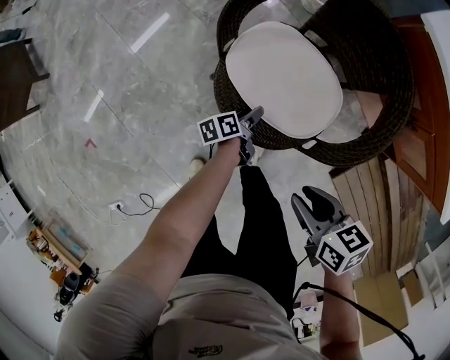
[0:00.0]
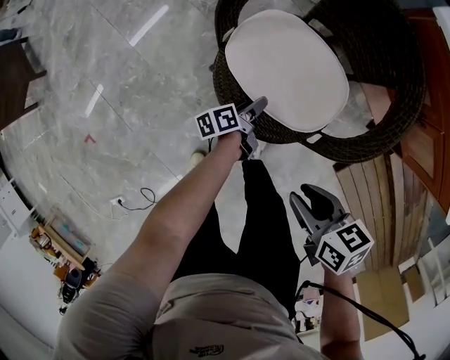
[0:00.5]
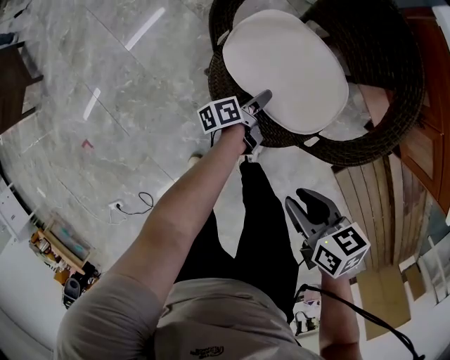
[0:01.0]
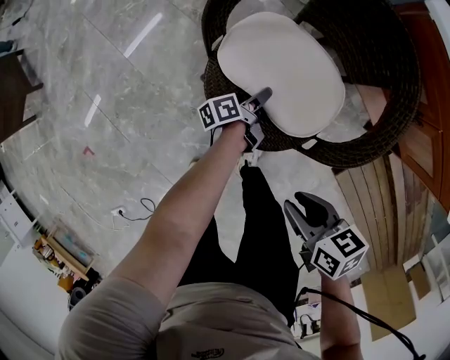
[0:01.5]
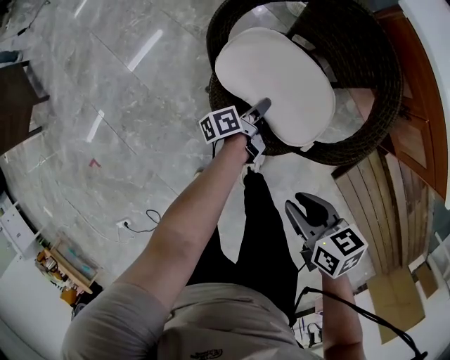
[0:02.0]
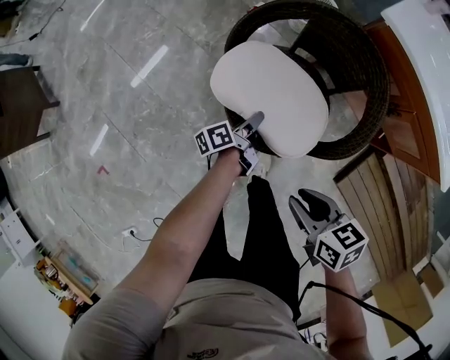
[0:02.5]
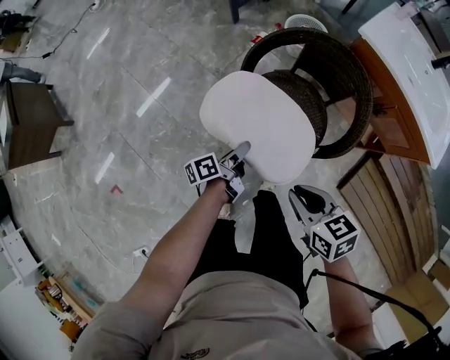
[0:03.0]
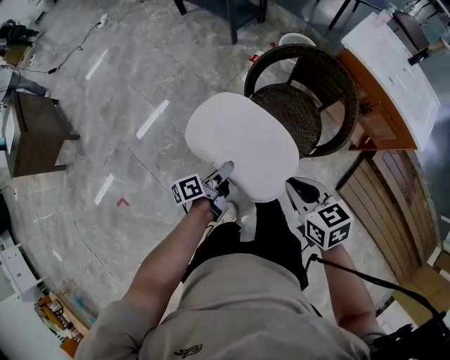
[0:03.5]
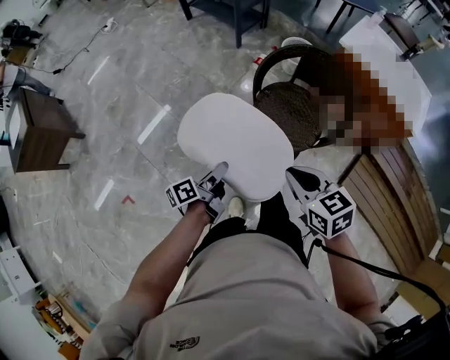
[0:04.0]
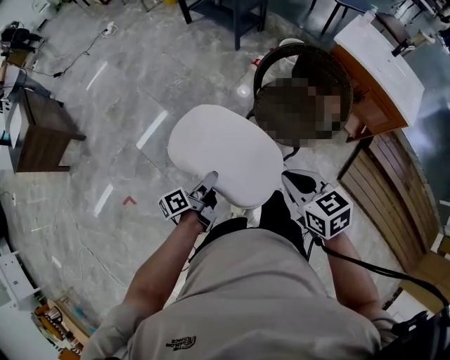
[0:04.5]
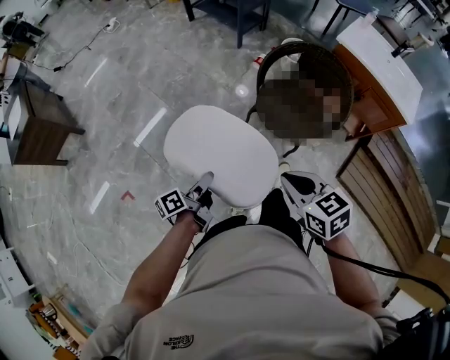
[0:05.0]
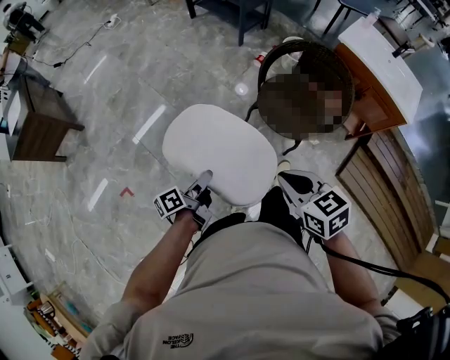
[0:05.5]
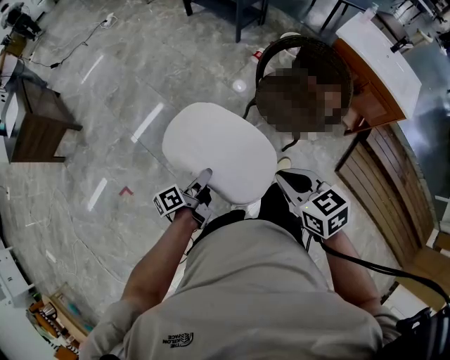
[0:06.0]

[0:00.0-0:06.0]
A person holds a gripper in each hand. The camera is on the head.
0:02.0 to 0:04.0: The right gripper shifts roughly 25 cm upward, turns by approximately 30 degrees, and closes up.
0:04.0 to 0:06.0: The right gripper changes place by some 15 cm.

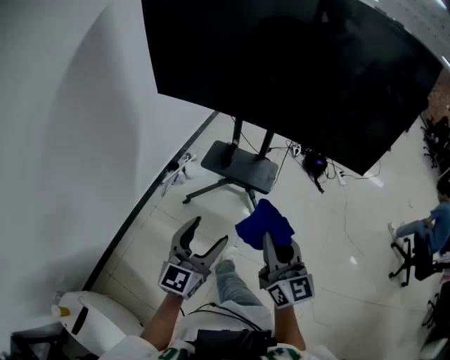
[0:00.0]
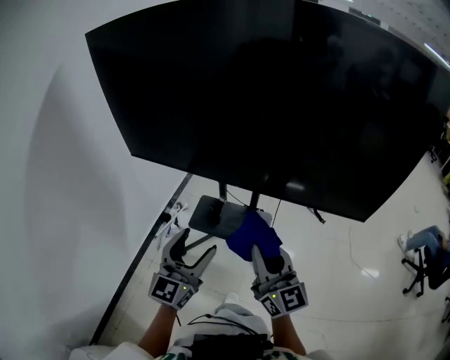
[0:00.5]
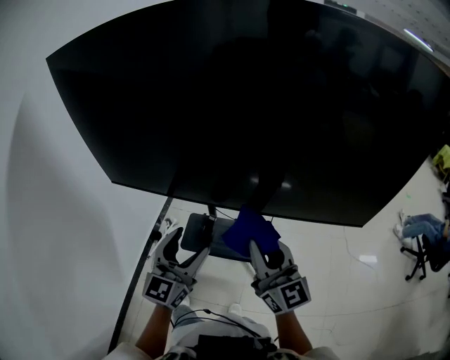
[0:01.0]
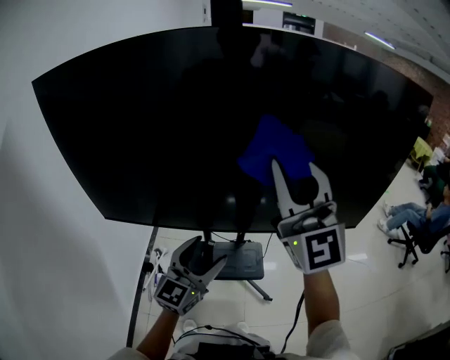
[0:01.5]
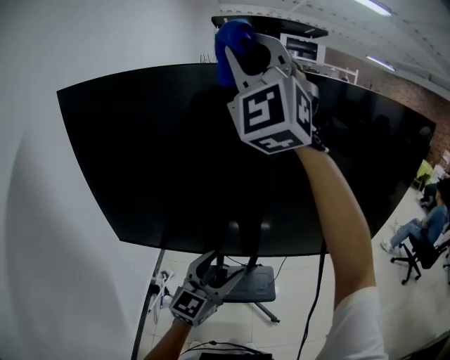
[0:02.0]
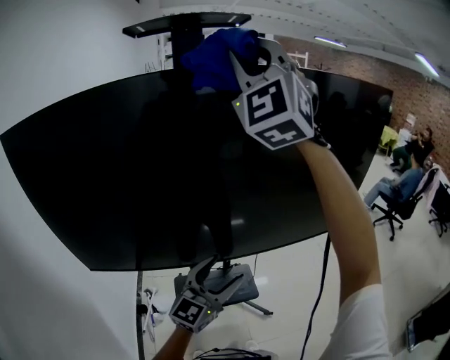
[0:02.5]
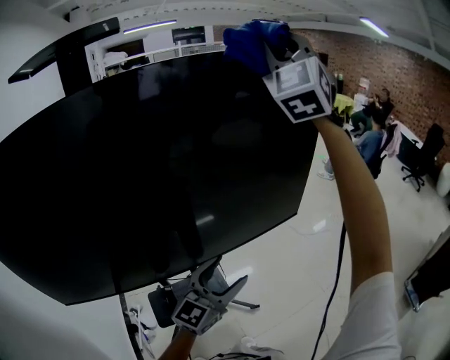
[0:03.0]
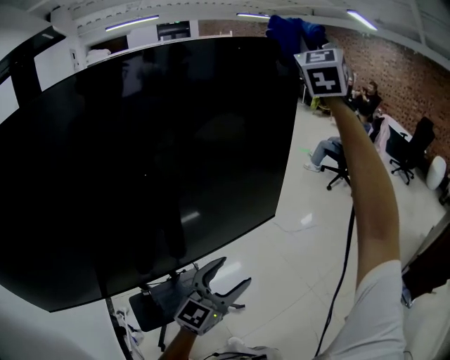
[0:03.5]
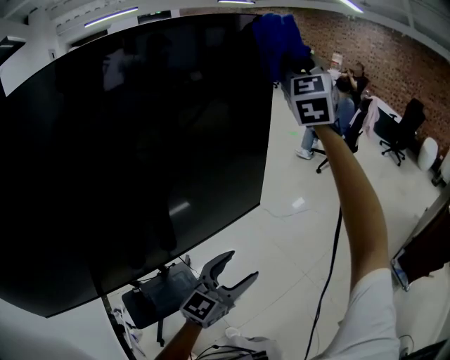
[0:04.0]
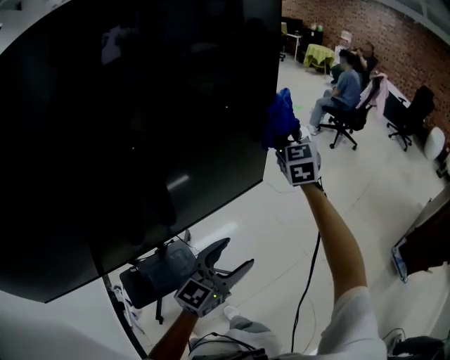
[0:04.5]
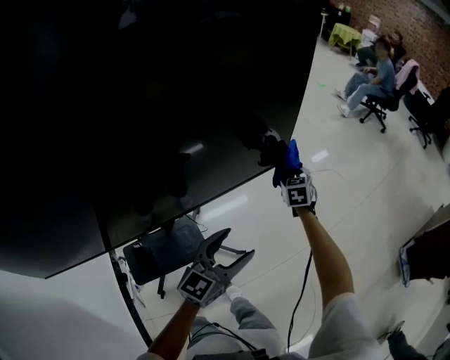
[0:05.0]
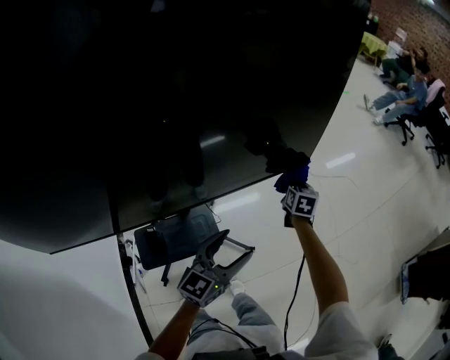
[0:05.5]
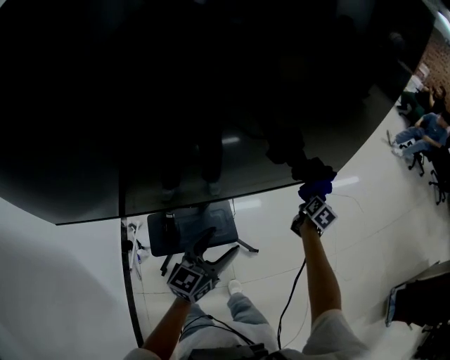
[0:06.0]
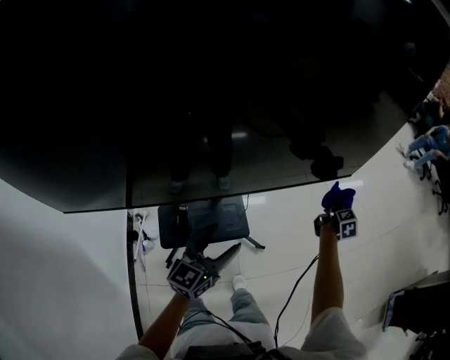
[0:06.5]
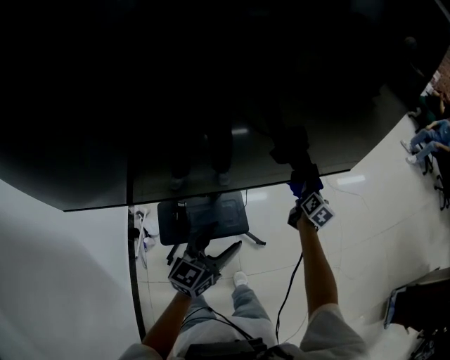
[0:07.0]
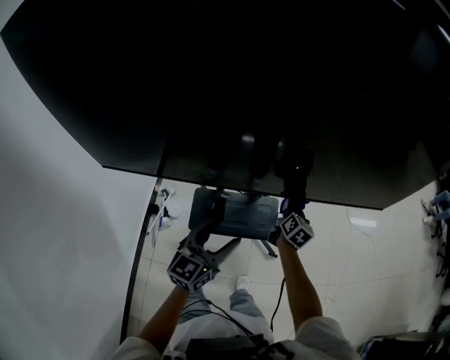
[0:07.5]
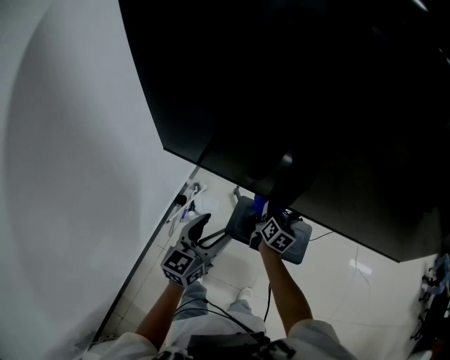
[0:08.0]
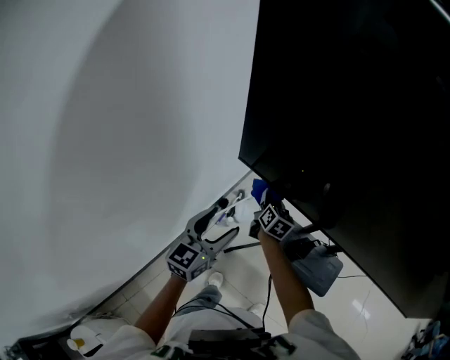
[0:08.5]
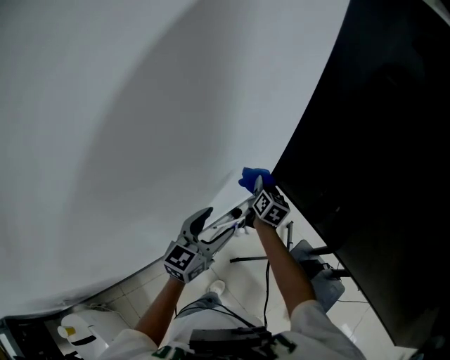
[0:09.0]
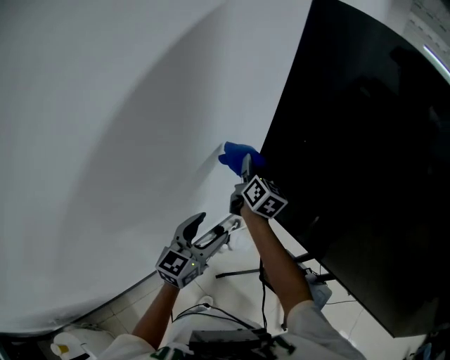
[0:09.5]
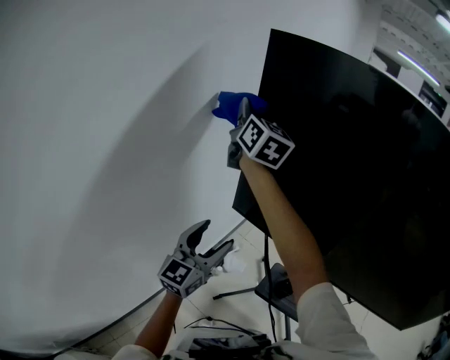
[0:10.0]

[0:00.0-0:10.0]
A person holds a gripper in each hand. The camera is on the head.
0:00.0 to 0:02.0: The pair of grippers is taken forward, about 50 cm. The left gripper turns by some 30 degrees, while the right gripper is displaced upward by some 60 cm, and rotates around the line of its fingers by roughly 80 degrees, counterclockwise from behind.
0:02.0 to 0:04.0: The two grippers travel together, roughly 60 cm. The right gripper turns by approximately 60 degrees; the left gripper rotates about 40 degrees.
0:04.0 to 0:06.0: The right gripper heads downward, covering approximately 70 cm, and tilts its fingers approximately 50 degrees downward, while the left gripper heads to the left, downward and backward, covering roughly 25 cm, and swivels roughly 30 degrees.
0:06.0 to 0:08.0: The pair of grippers is taken approximately 60 cm. The left gripper turns by roughly 40 degrees; the right gripper changes its angle by approximately 50 degrees.
0:08.0 to 0:10.0: The left gripper ends up approximately 30 cm from where it was, and rotates some 20 degrees. The right gripper goes approximately 50 cm upward, and points its fingers some 40 degrees further upward.

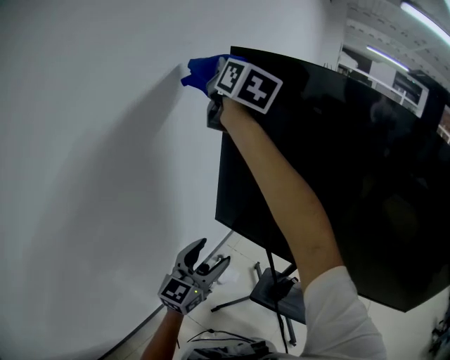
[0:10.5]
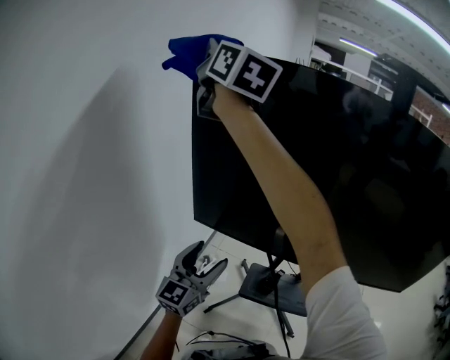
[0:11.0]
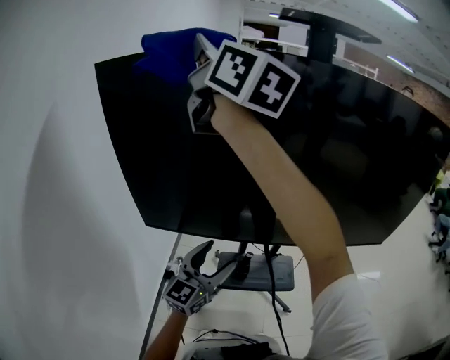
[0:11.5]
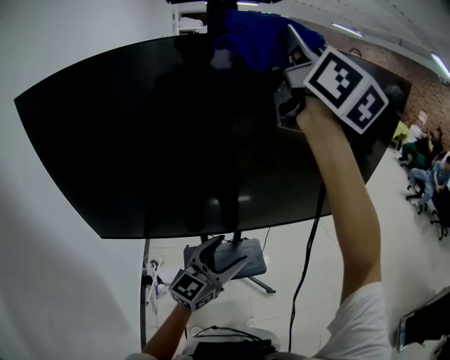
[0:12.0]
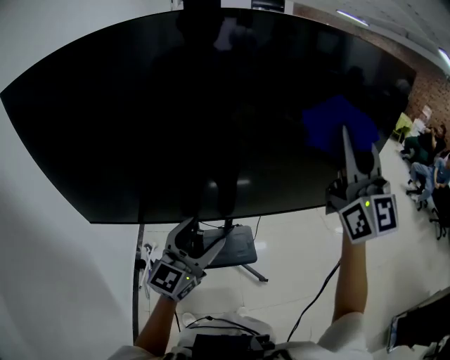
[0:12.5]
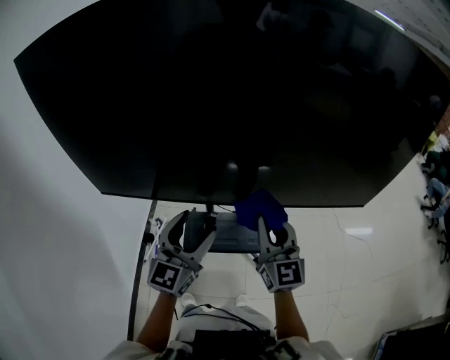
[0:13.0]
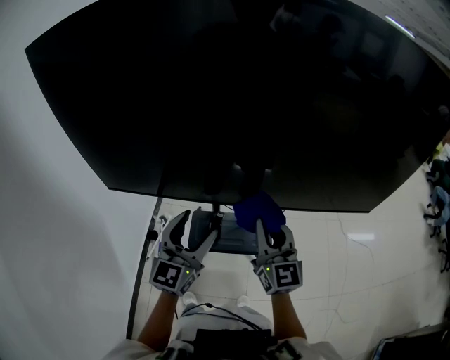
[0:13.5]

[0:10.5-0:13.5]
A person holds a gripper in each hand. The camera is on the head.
0:10.5 to 0:12.0: The two grippers travel together, approximately 50 cm. The left gripper rotates about 50 degrees. The right gripper turns by about 50 degrees.
0:12.0 to 0:13.5: The right gripper moves downward, approximately 50 cm, and rotates approximately 30 degrees, while the left gripper moves to the left, about 15 cm, and rotates about 30 degrees.

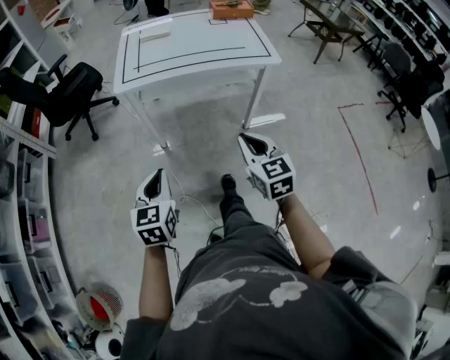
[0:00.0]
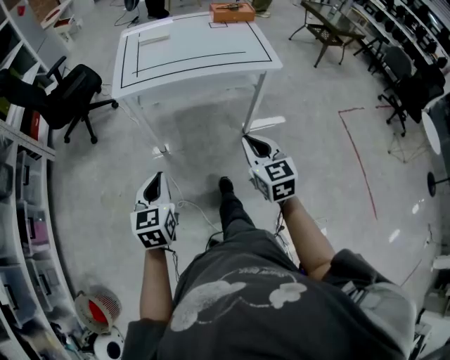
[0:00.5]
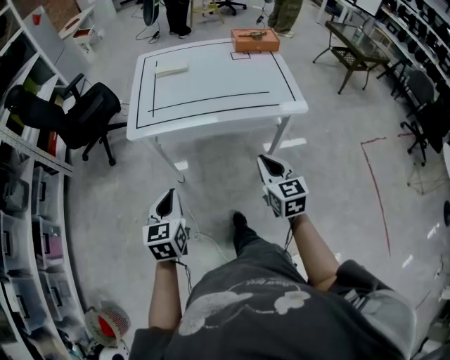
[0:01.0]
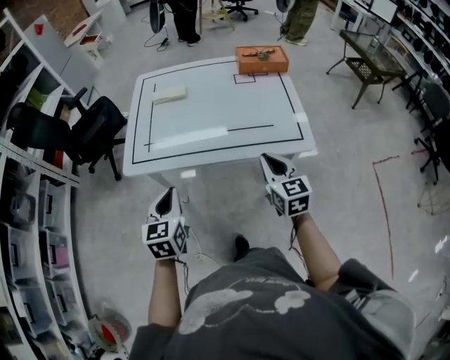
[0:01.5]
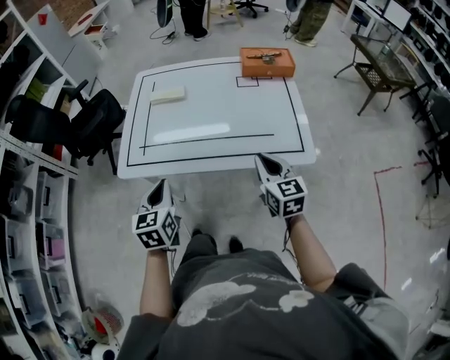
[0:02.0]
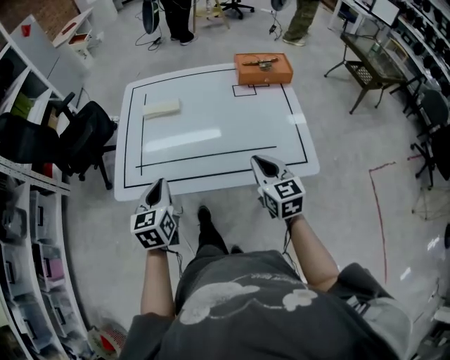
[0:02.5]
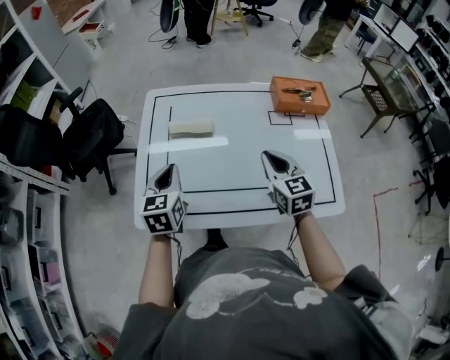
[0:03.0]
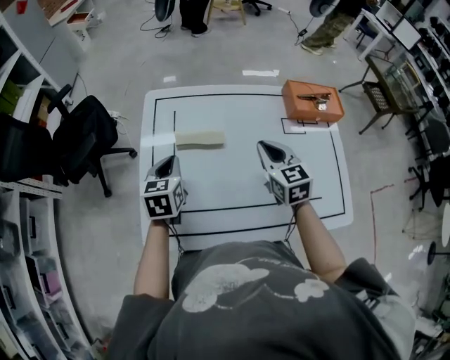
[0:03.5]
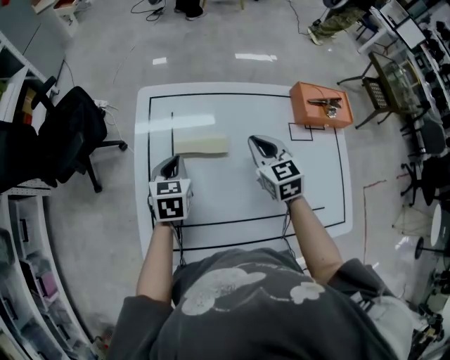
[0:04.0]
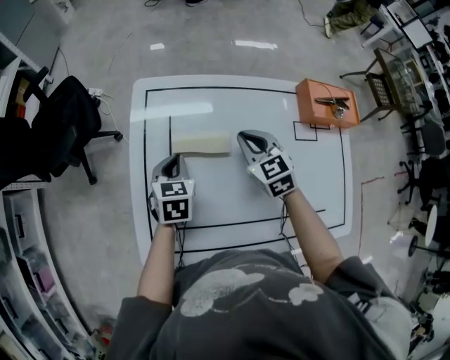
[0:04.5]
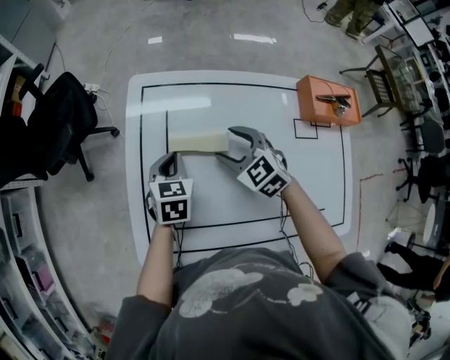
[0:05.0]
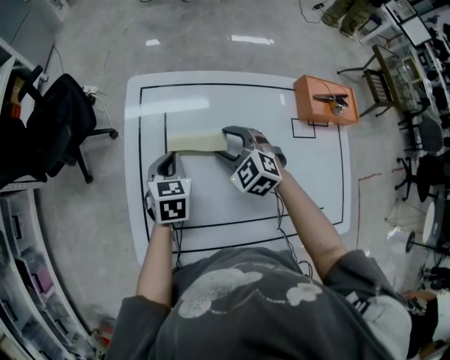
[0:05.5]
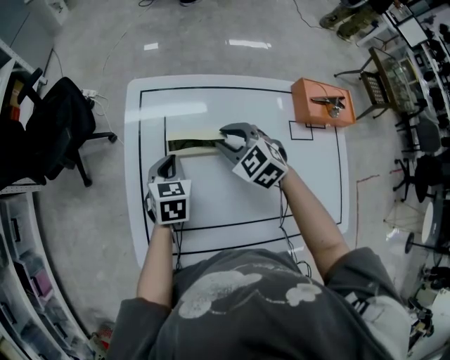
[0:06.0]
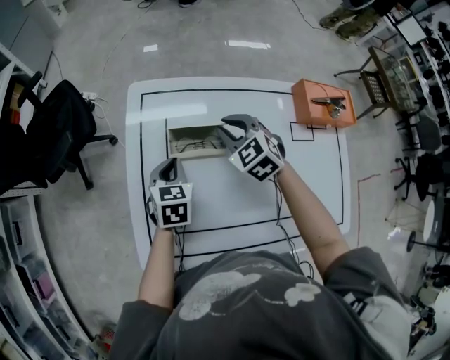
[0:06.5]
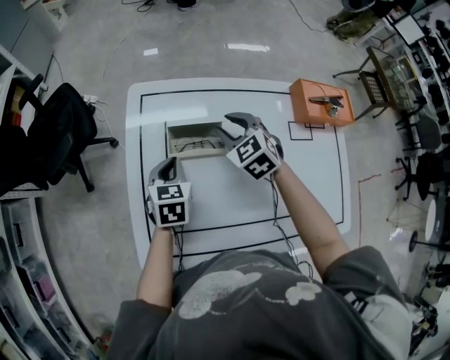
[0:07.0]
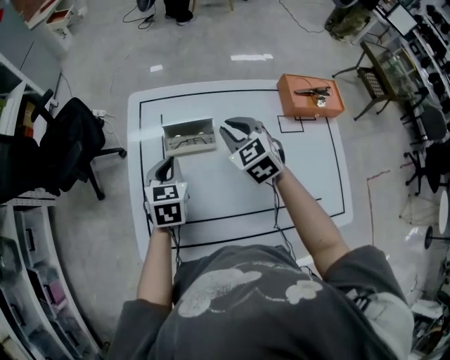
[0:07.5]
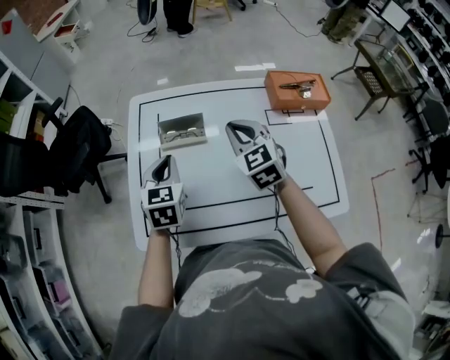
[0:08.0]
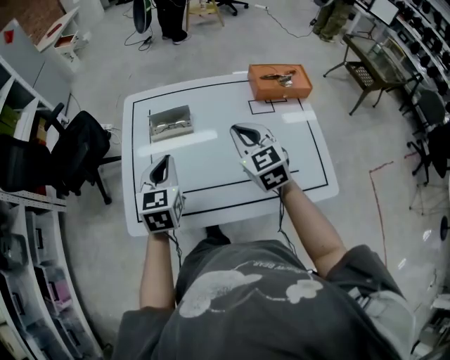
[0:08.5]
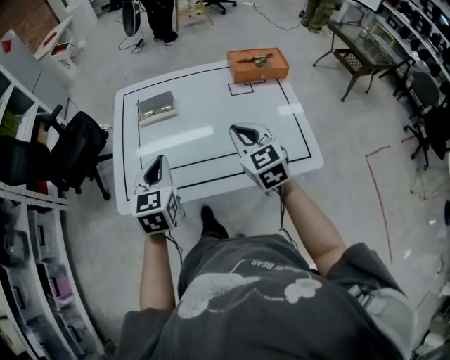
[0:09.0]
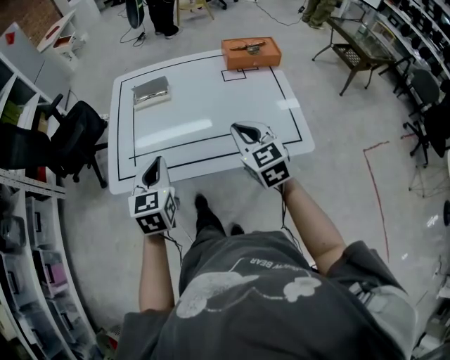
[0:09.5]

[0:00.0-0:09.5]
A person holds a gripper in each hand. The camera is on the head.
0:00.0 to 0:02.0: The grippers both shift forward by some 40 cm.
0:02.0 to 0:04.0: Both grippers are carried forward, about 40 cm.
0:04.0 to 0:05.5: The right gripper heads to the left and downward, covering about 10 cm, turns by some 40 degrees, and opens.
0:05.5 to 0:07.5: The grippers both shift upward by some 10 cm. The right gripper turns by some 20 degrees, and closes.
0:07.5 to 0:09.5: The right gripper goes about 35 cm backward and to the right. The left gripper shifts approximately 30 cm backward.
